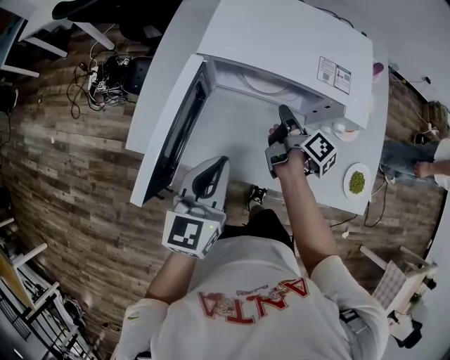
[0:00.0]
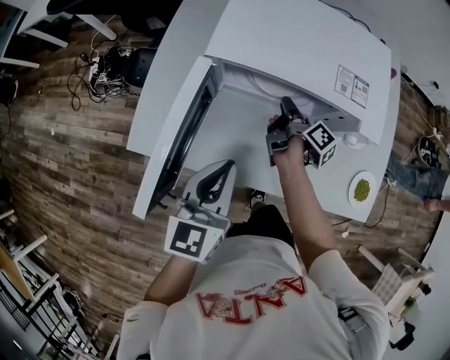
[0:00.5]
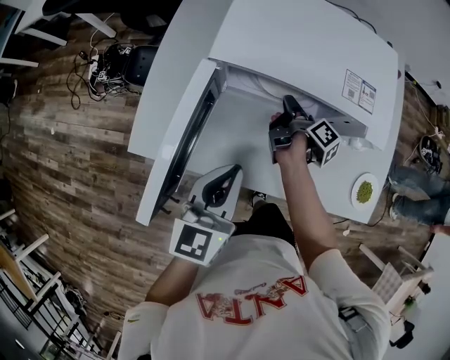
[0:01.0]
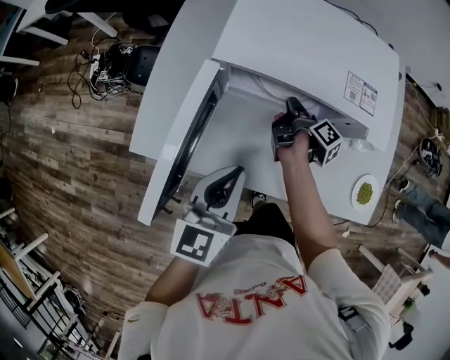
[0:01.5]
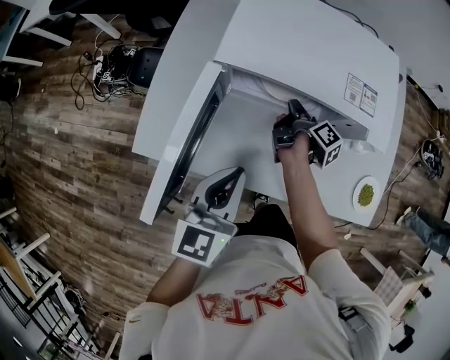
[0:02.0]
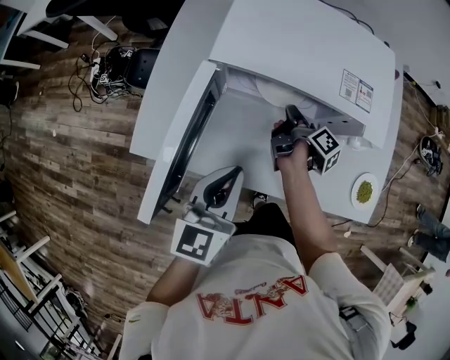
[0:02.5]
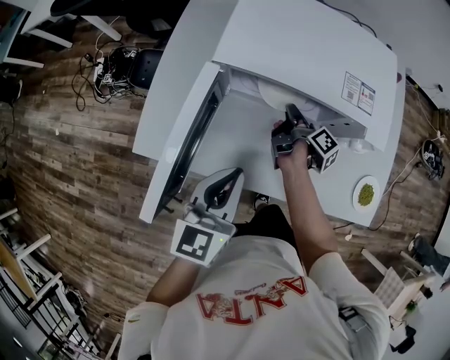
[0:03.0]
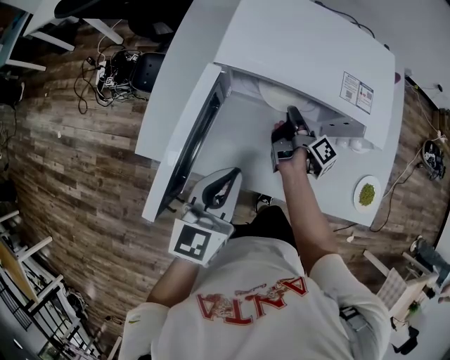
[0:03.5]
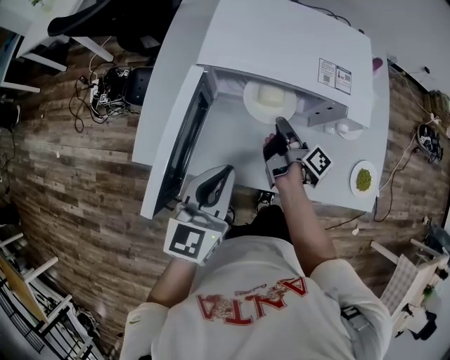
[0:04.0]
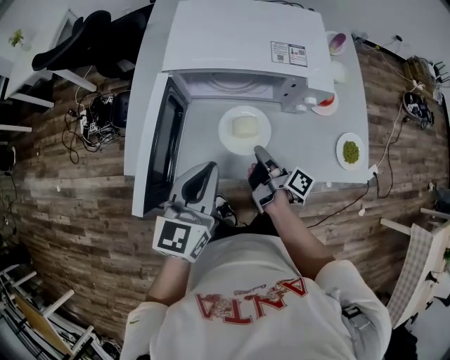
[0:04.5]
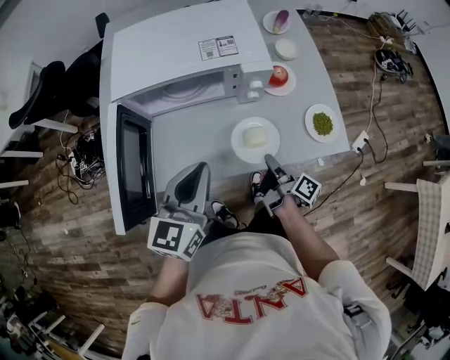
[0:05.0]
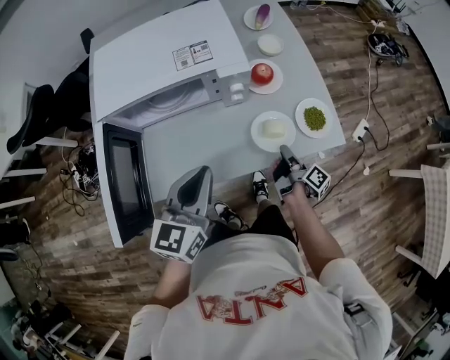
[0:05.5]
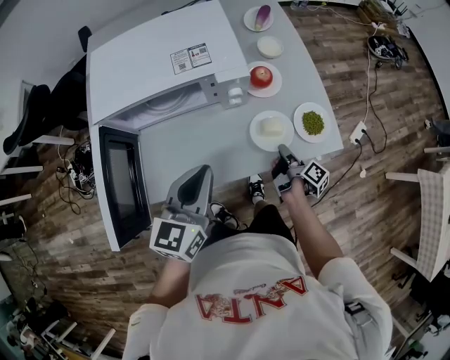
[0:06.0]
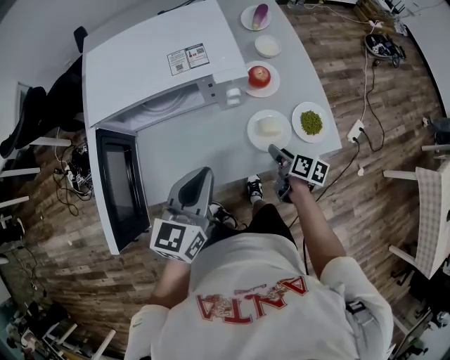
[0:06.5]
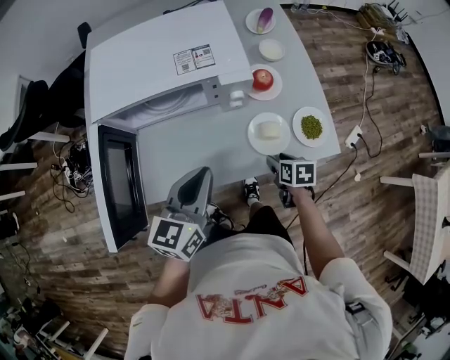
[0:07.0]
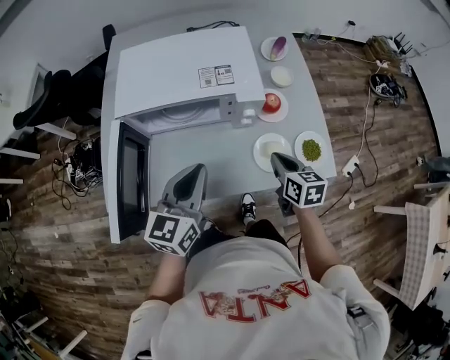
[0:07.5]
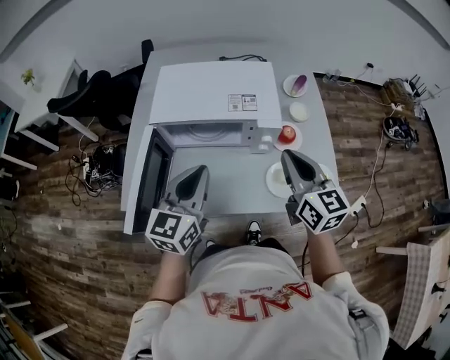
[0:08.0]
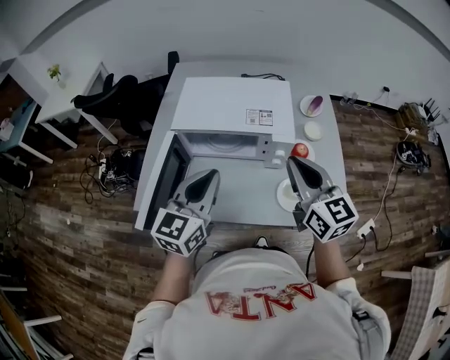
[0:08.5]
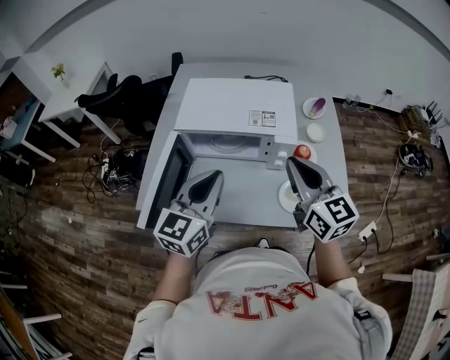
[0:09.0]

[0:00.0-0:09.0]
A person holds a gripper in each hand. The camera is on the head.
0:00.0 to 0:02.0: The right gripper heads forward and downward, covering some 10 cm.
0:02.0 to 0:04.5: The left gripper ends up about 5 cm from where it was; the right gripper travels backward by approximately 20 cm.
0:04.5 to 0:07.0: The left gripper goes roughly 15 cm to the right, while the right gripper shifts approximately 25 cm to the right, angles its fingers downward, by roughly 50 degrees, and opens its fingers.
0:07.0 to 0:09.0: The right gripper is displaced upward by approximately 40 cm, tips its fingers upward by roughly 50 degrees, and closes up; the left gripper shifts roughly 15 cm upward and to the left, and changes its angle by approximately 20 degrees.

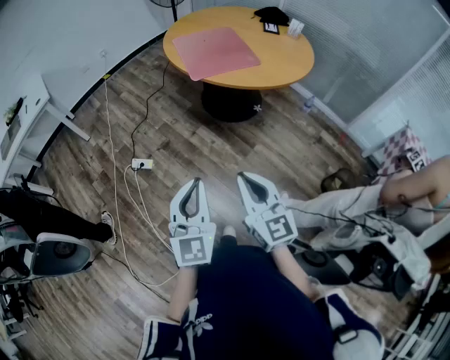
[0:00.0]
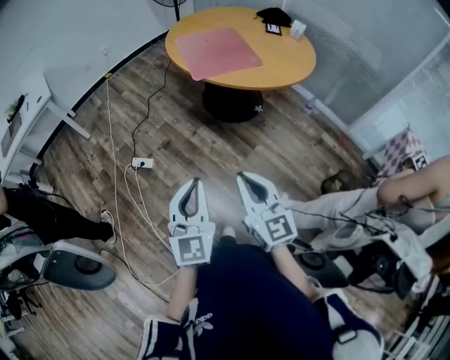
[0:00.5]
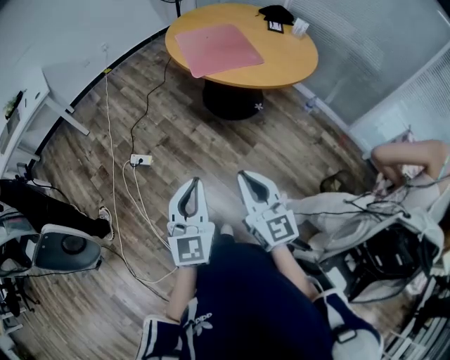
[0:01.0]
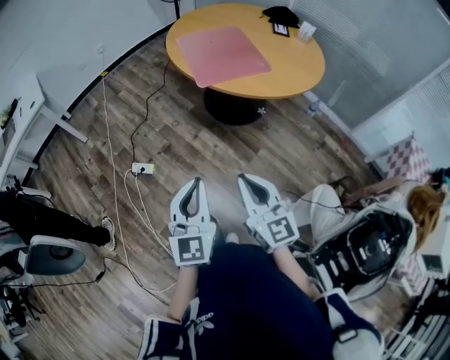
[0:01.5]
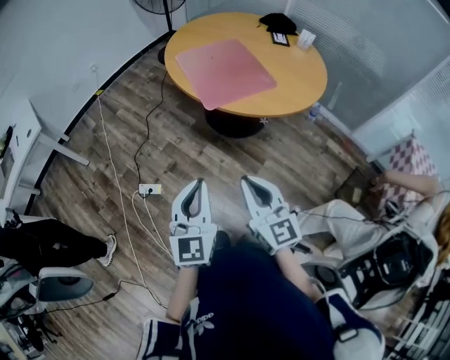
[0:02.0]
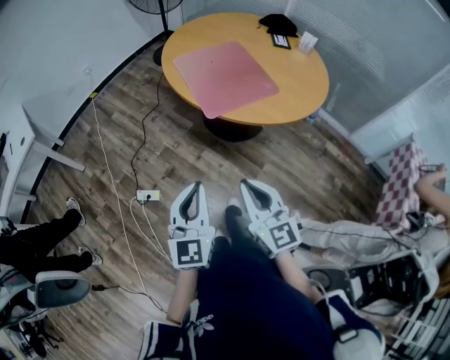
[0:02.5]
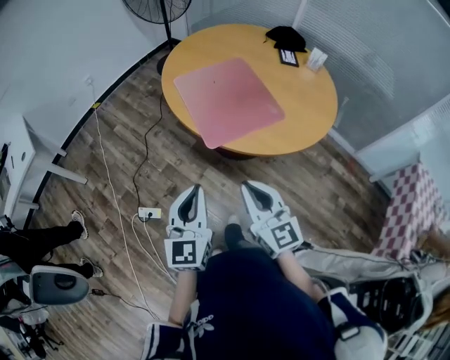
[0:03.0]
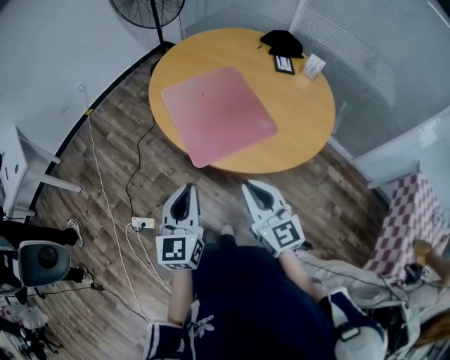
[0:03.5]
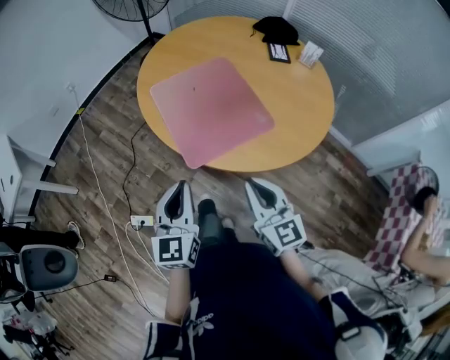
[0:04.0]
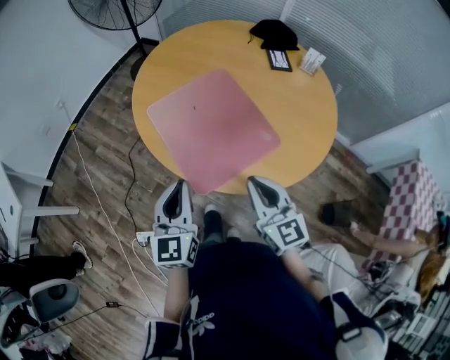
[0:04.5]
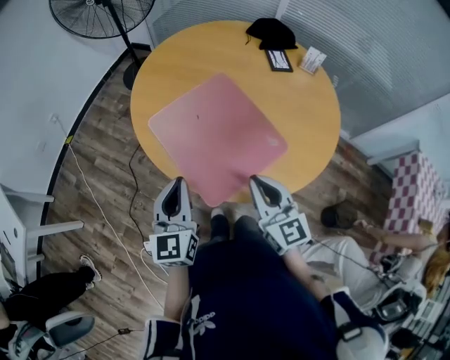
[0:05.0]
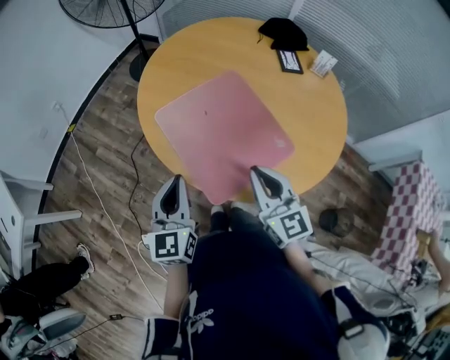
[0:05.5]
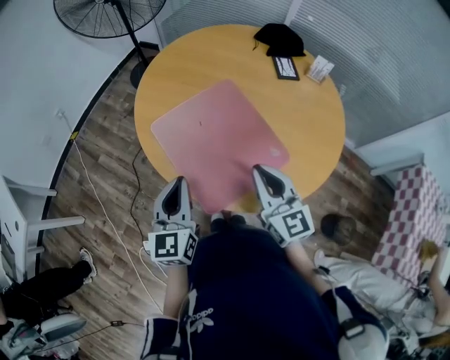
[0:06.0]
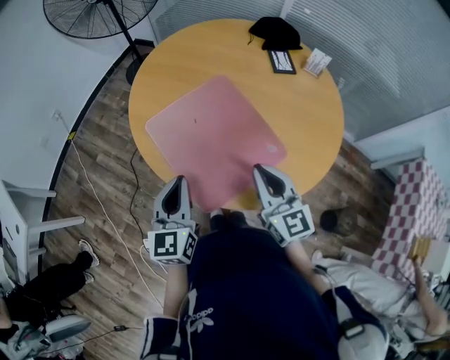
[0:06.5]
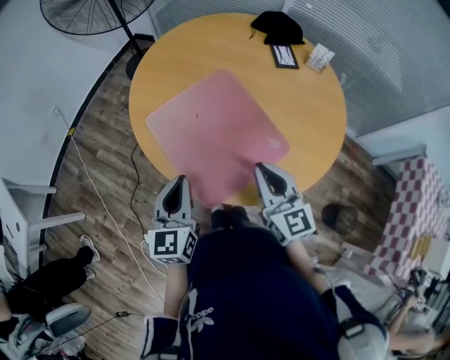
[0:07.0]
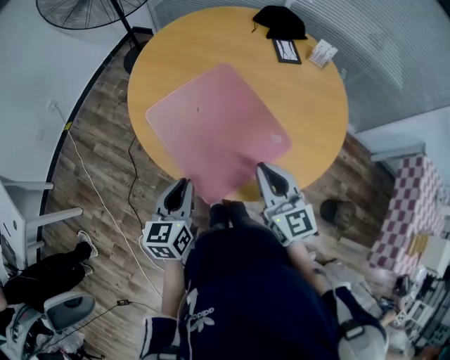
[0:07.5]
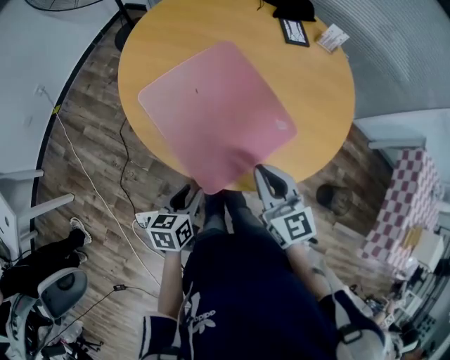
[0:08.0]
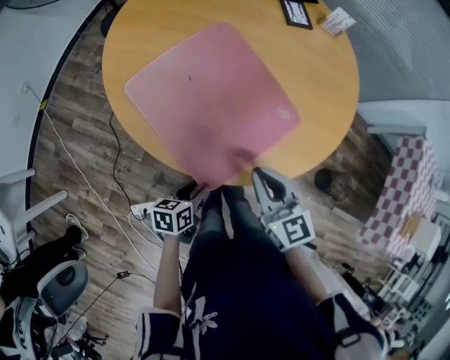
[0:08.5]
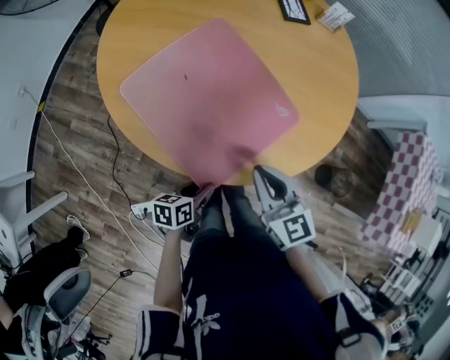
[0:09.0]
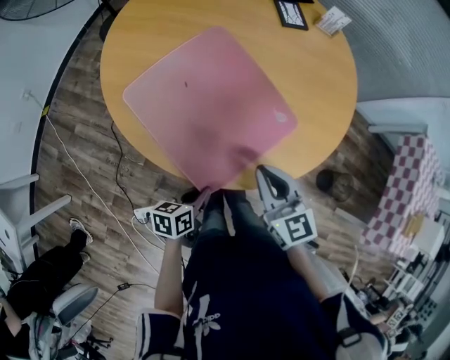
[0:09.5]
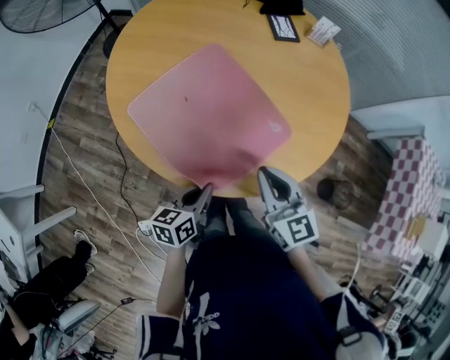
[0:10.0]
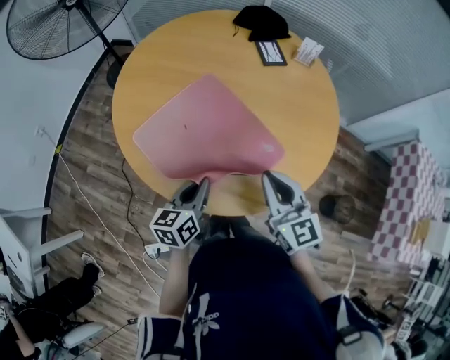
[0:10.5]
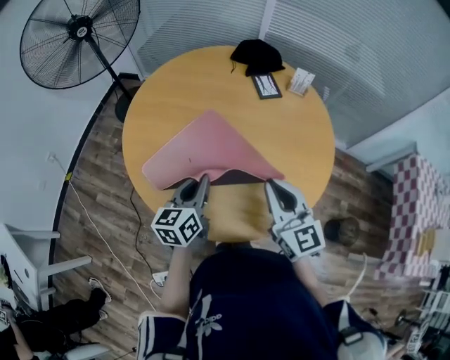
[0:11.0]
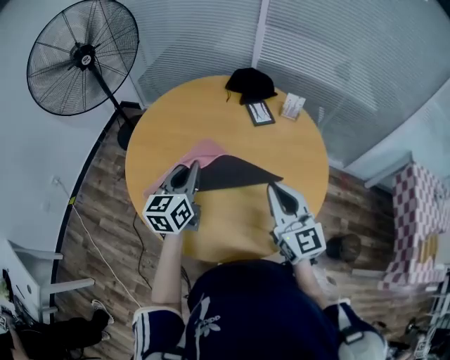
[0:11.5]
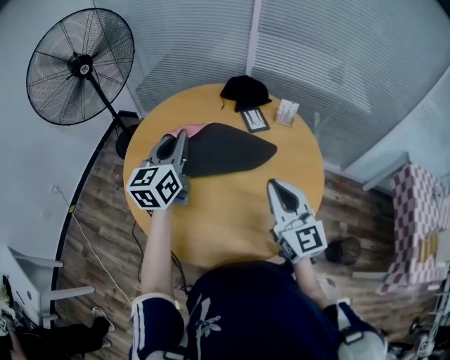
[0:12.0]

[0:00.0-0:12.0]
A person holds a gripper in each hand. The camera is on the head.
0:00.0 to 0:02.0: The grippers both shift forward by about 20 cm.
0:02.0 to 0:04.0: The left gripper shifts about 30 cm forward. Meanwhile the right gripper travels forward and to the right by approximately 30 cm.
0:04.0 to 0:06.0: Both grippers move forward, roughly 20 cm.
0:06.0 to 0:08.0: The right gripper shifts some 5 cm downward. The left gripper heads downward and backward, covering some 20 cm, turns by some 40 degrees, and opens.
0:08.0 to 0:10.0: The left gripper reaches about 10 cm downward, then returns, and closes.
0:10.0 to 0:12.0: The left gripper travels forward and upward by approximately 40 cm, and swivels some 50 degrees, while the right gripper travels upward and forward by approximately 20 cm, and changes its angle by roughly 20 degrees.

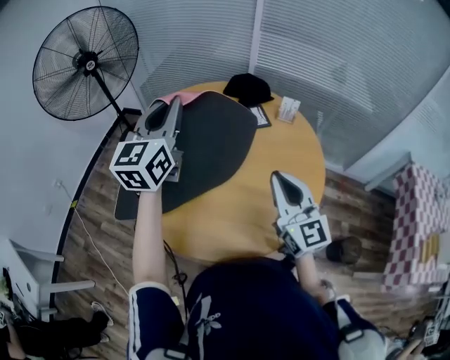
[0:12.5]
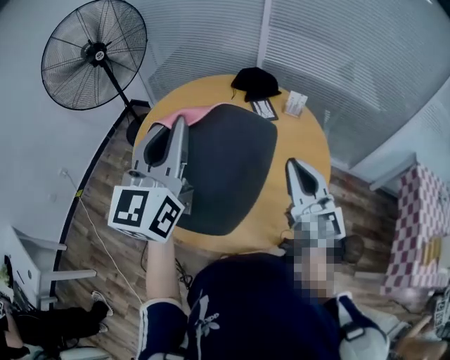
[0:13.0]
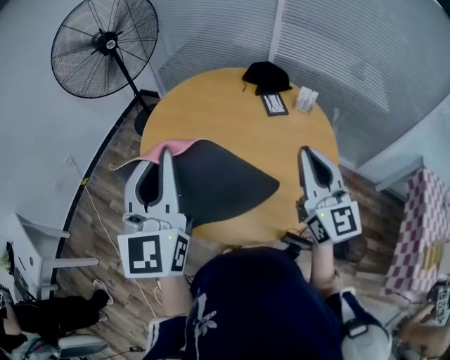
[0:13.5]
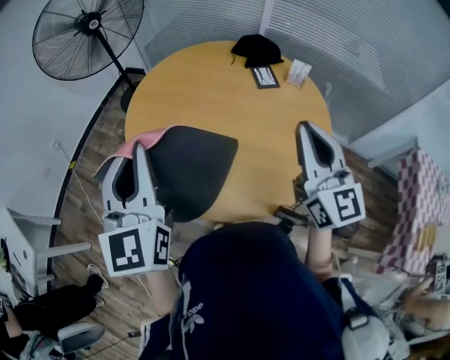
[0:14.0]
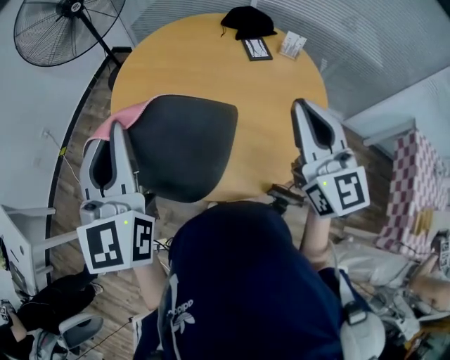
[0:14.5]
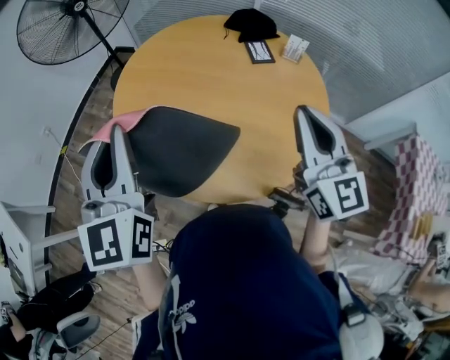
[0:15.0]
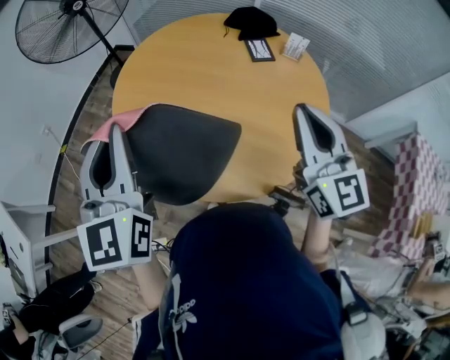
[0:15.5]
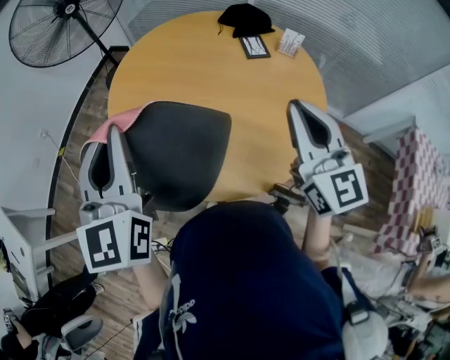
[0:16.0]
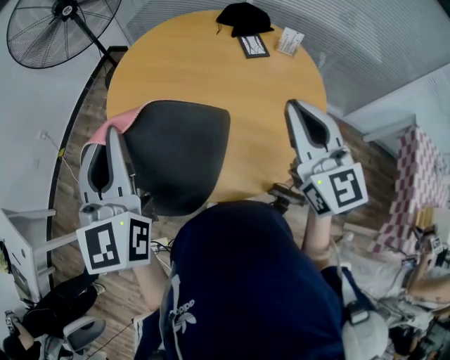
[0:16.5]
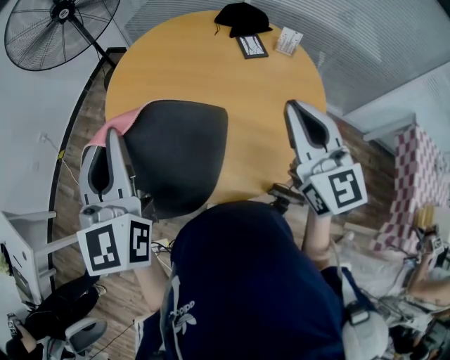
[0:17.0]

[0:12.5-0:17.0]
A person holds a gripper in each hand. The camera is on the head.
0:12.5 to 0:14.5: The left gripper shifts approximately 20 cm backward, and swivels about 20 degrees, while the right gripper is displaced upward by approximately 5 cm.
0:14.5 to 0:17.0: The grippers stay close to where they were, moving slightly.

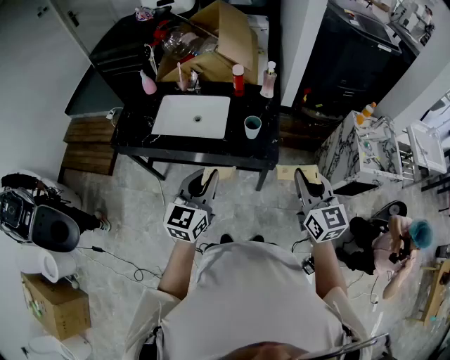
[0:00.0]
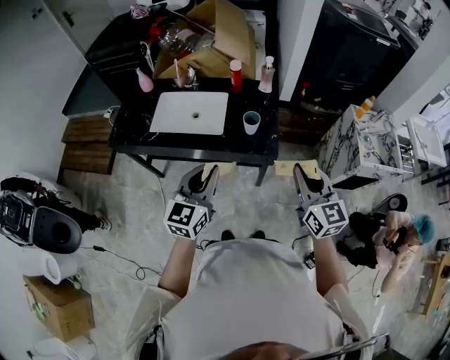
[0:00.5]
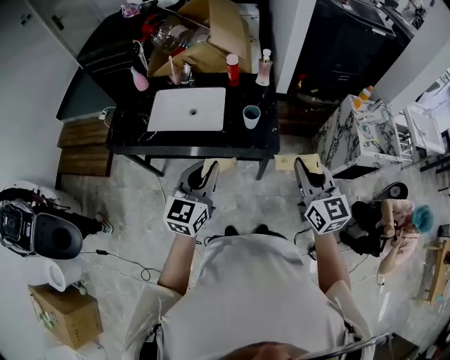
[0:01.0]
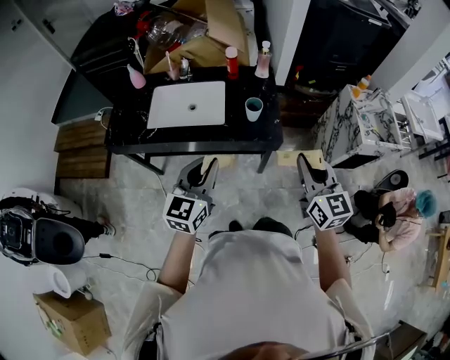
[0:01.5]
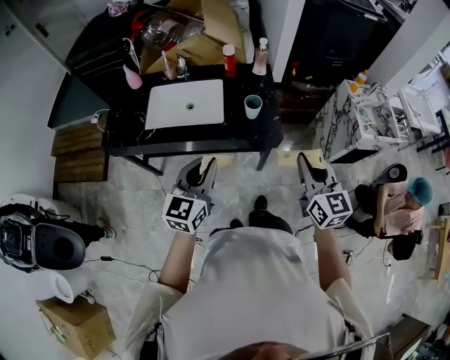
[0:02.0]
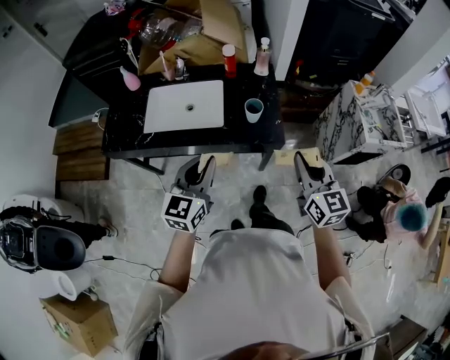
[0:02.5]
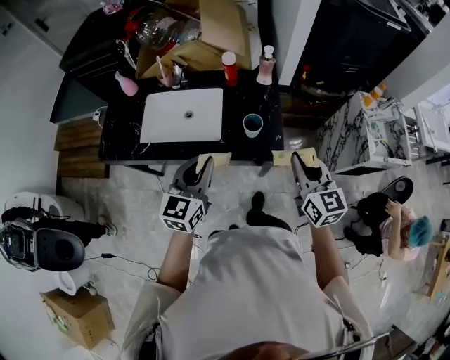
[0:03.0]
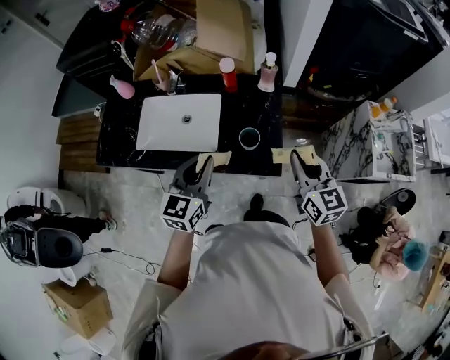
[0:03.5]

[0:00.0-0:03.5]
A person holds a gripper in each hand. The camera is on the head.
0:00.0 to 0:02.0: The left gripper travels to the left by about 5 cm. The right gripper moves approximately 5 cm.
0:02.0 to 0:03.5: Both grippers travel together forward, about 25 cm.
